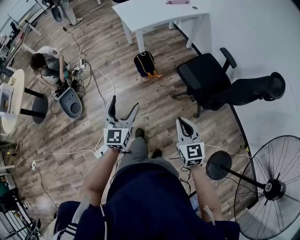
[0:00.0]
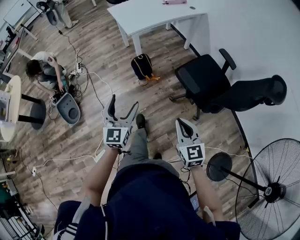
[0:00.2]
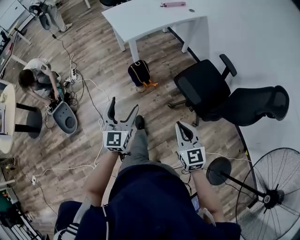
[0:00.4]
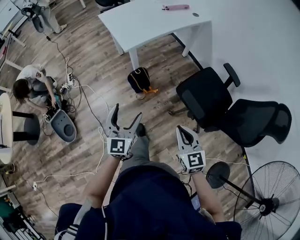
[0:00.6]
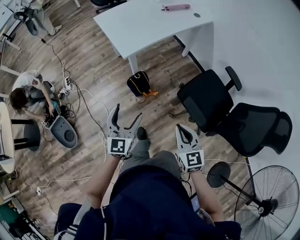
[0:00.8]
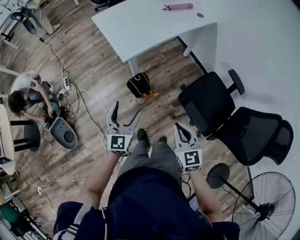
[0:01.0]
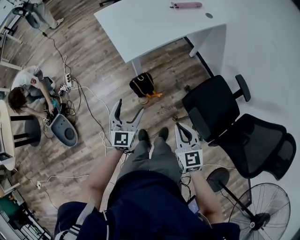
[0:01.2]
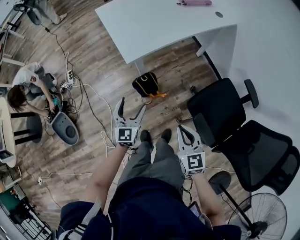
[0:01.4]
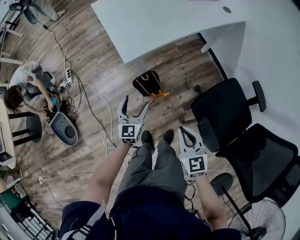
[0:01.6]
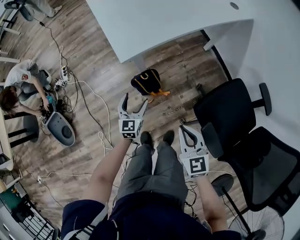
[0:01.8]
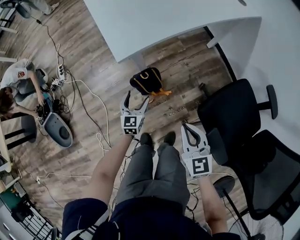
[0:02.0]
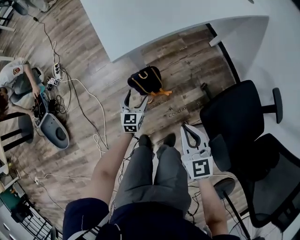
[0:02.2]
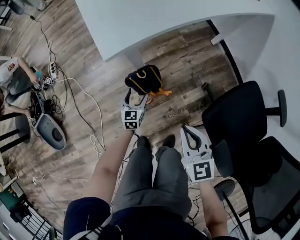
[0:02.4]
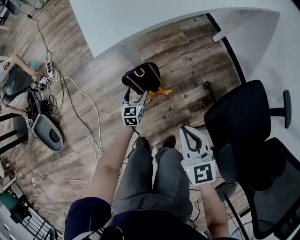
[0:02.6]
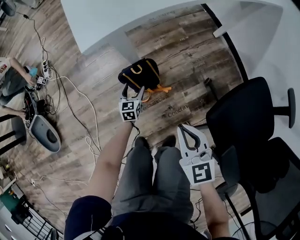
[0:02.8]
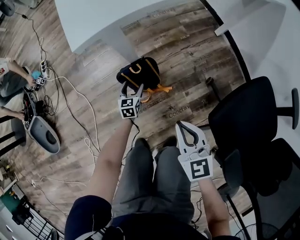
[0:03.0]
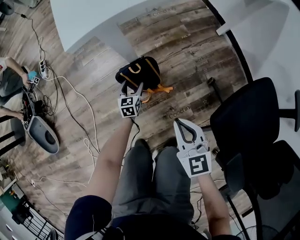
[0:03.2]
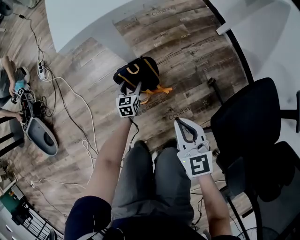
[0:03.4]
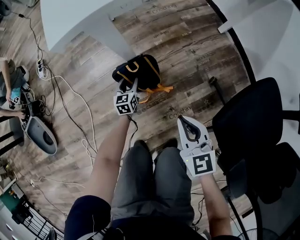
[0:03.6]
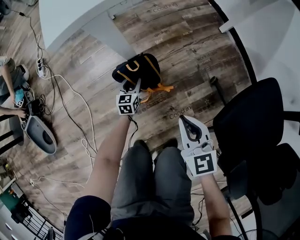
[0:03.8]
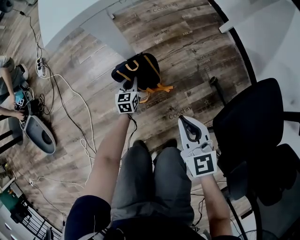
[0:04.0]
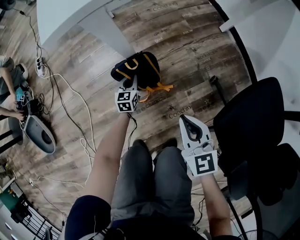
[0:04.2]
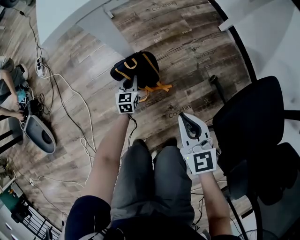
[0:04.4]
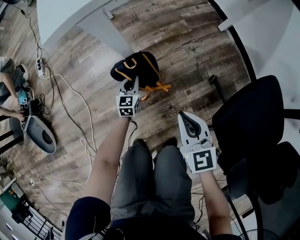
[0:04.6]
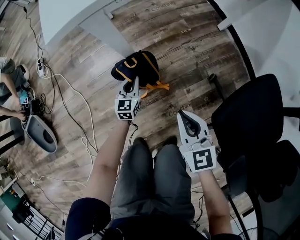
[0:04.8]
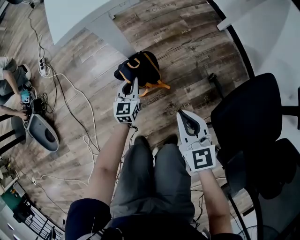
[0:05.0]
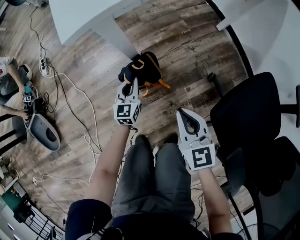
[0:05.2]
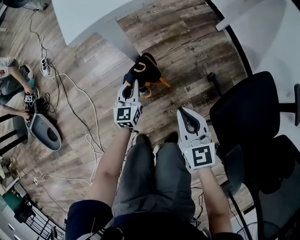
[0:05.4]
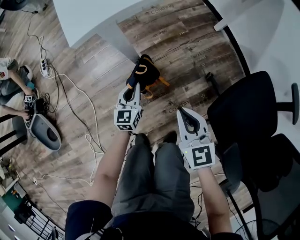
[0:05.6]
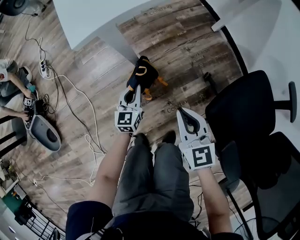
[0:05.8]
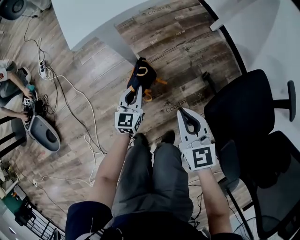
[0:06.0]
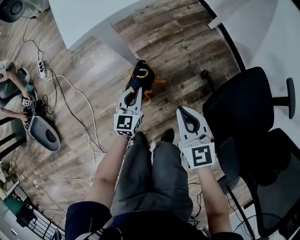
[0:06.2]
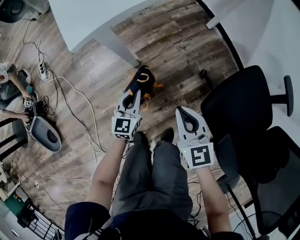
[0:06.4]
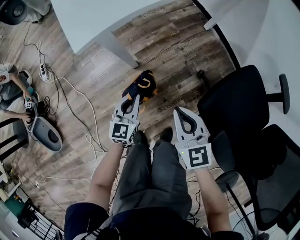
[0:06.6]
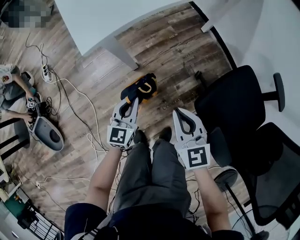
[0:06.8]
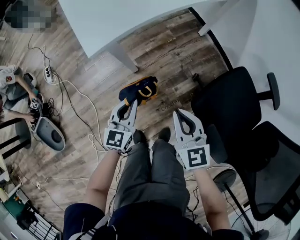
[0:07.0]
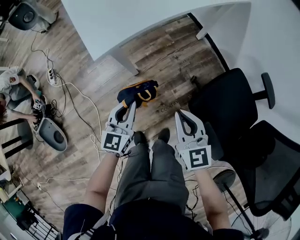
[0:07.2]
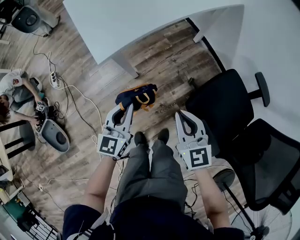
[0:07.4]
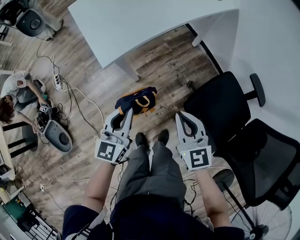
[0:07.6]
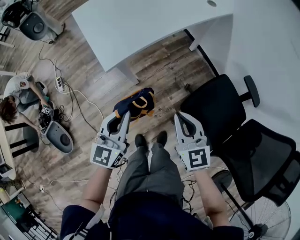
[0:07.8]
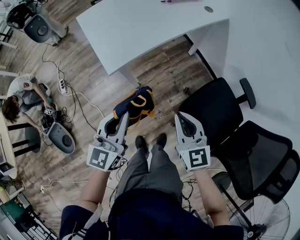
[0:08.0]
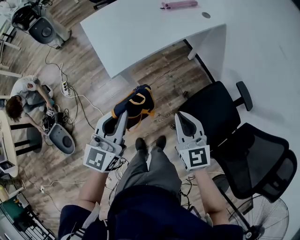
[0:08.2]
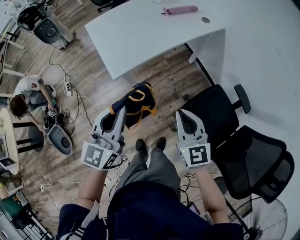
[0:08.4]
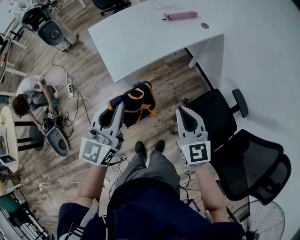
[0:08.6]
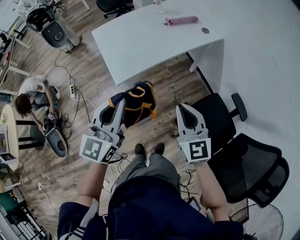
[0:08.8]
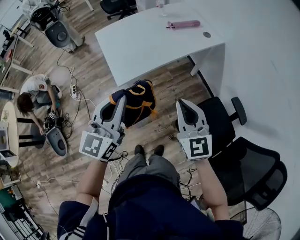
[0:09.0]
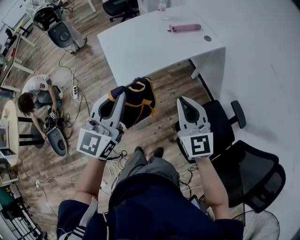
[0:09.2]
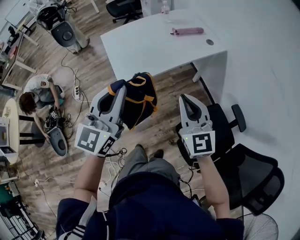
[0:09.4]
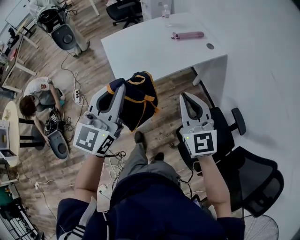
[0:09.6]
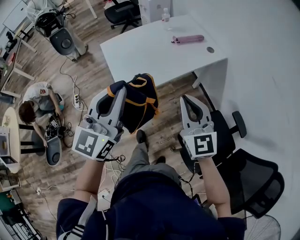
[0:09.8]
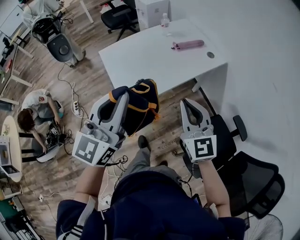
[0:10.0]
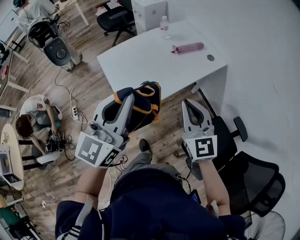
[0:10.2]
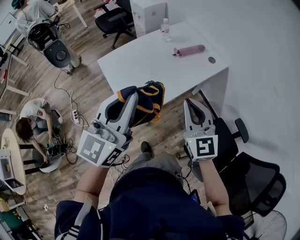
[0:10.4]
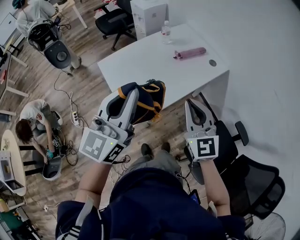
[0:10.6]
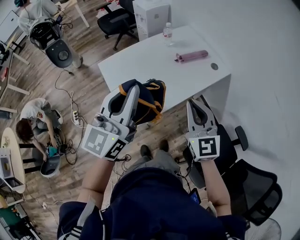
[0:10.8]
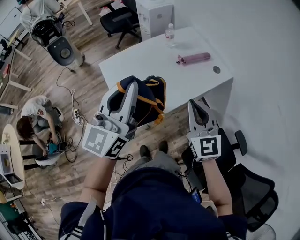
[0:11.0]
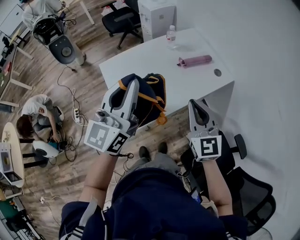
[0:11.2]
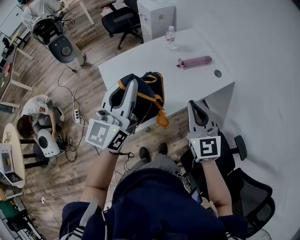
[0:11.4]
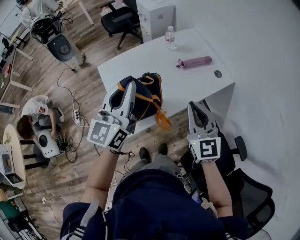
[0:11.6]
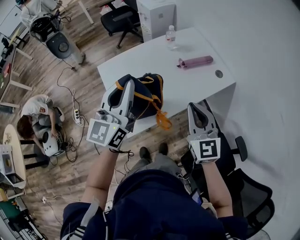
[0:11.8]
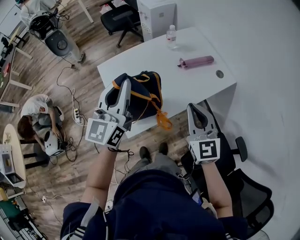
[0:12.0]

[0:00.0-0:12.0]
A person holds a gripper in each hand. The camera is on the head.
0:00.0 to 0:01.6: The two grippers travel together, forward, about 50 cm. The left gripper travels downward by approximately 30 cm.
0:01.6 to 0:03.0: The left gripper travels downward by roughly 50 cm, and turns by some 20 degrees, while the right gripper heads downward, covering some 25 cm.
0:03.0 to 0:04.4: The right gripper heads downward, covering about 5 cm. The left gripper closes its fingers.
0:04.4 to 0:06.0: The right gripper goes some 10 cm upward; the left gripper goes some 20 cm upward.
0:06.0 to 0:07.6: The left gripper goes roughly 40 cm upward, while the right gripper shifts roughly 25 cm upward.
0:07.6 to 0:09.0: The grippers both shift upward by some 25 cm.
0:09.0 to 0:10.4: The left gripper travels forward and upward by roughly 20 cm. The right gripper goes some 20 cm forward and to the left.
0:10.4 to 0:12.0: Both grippers move forward, about 15 cm.

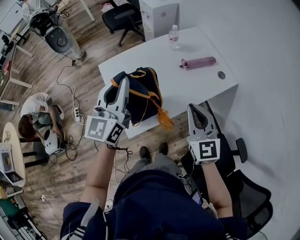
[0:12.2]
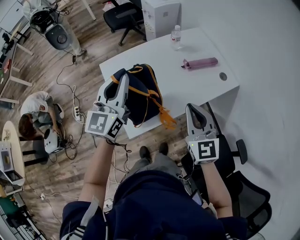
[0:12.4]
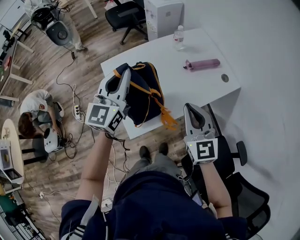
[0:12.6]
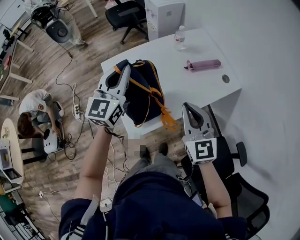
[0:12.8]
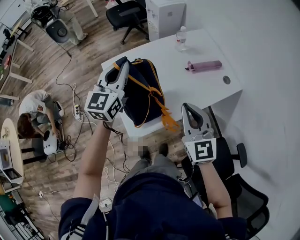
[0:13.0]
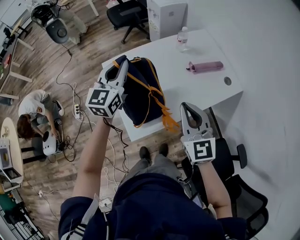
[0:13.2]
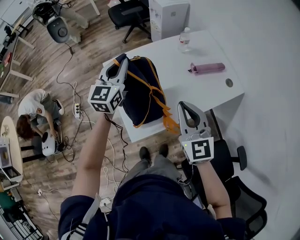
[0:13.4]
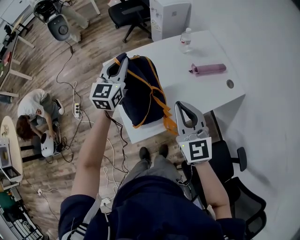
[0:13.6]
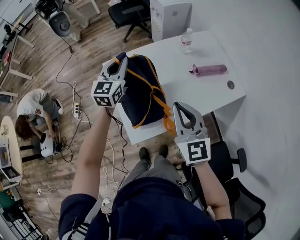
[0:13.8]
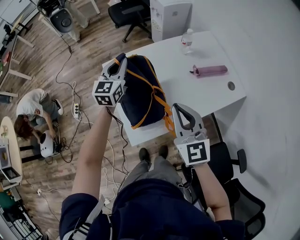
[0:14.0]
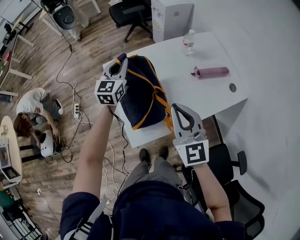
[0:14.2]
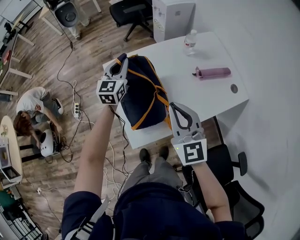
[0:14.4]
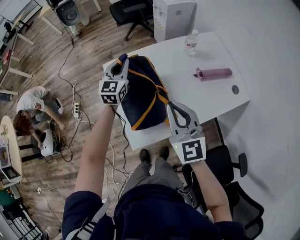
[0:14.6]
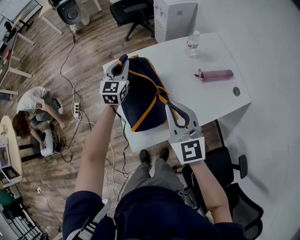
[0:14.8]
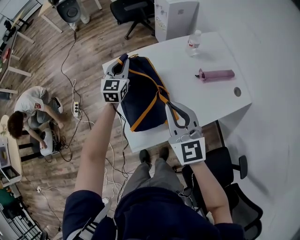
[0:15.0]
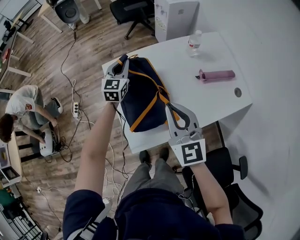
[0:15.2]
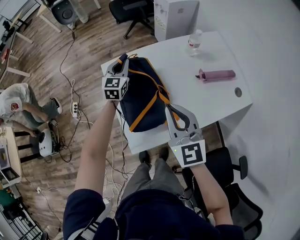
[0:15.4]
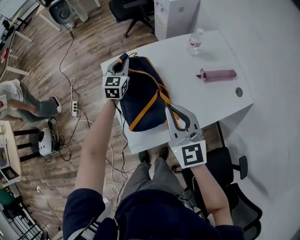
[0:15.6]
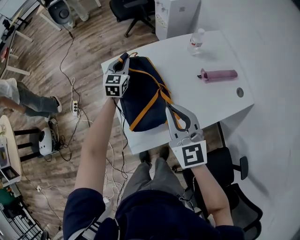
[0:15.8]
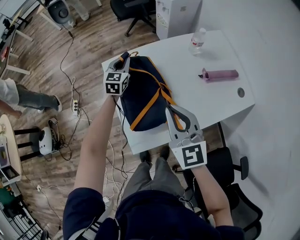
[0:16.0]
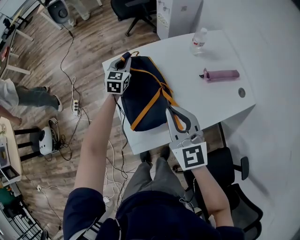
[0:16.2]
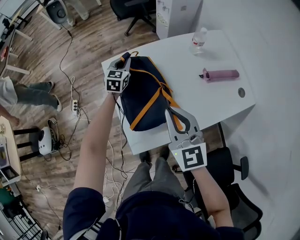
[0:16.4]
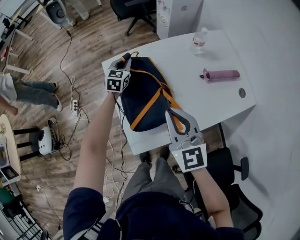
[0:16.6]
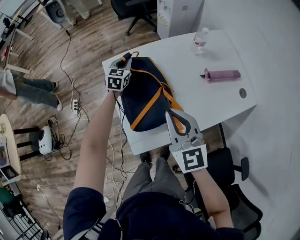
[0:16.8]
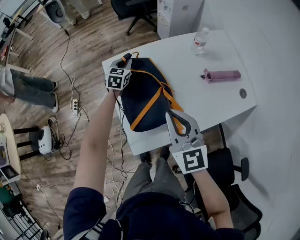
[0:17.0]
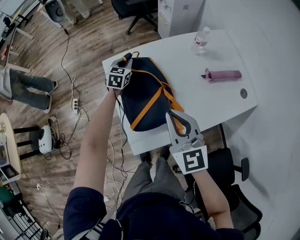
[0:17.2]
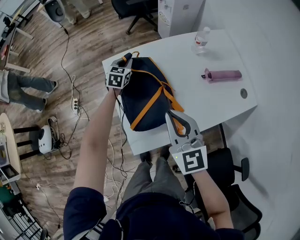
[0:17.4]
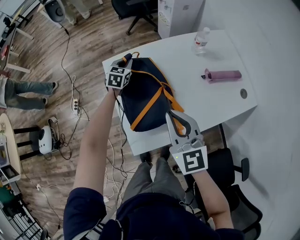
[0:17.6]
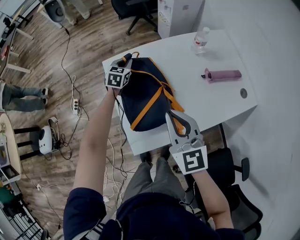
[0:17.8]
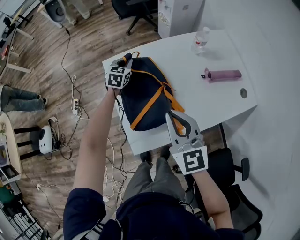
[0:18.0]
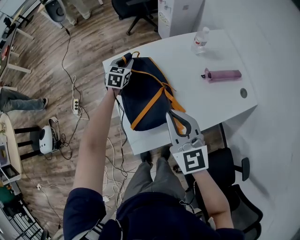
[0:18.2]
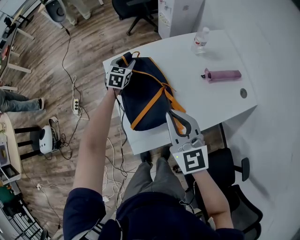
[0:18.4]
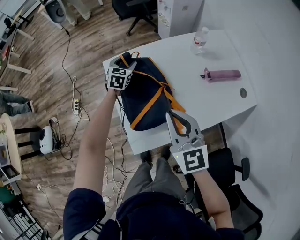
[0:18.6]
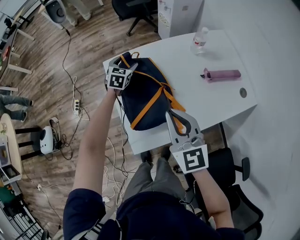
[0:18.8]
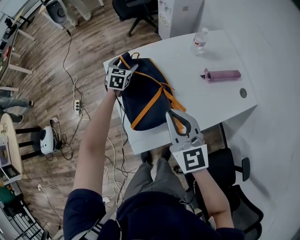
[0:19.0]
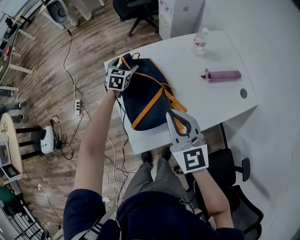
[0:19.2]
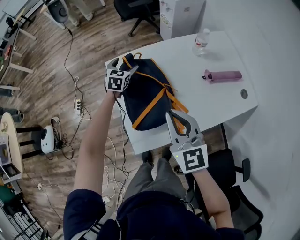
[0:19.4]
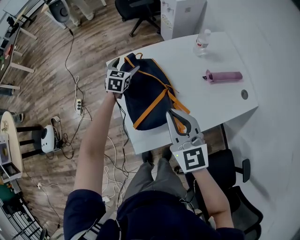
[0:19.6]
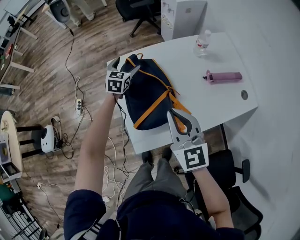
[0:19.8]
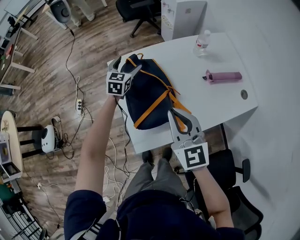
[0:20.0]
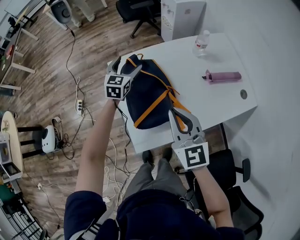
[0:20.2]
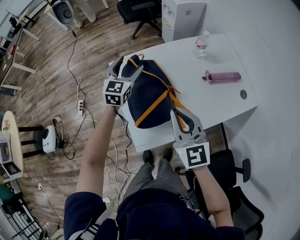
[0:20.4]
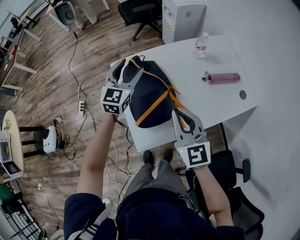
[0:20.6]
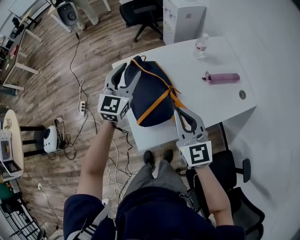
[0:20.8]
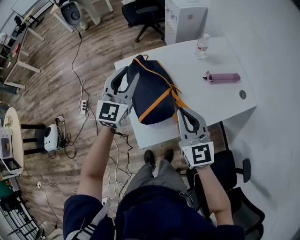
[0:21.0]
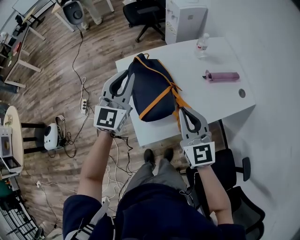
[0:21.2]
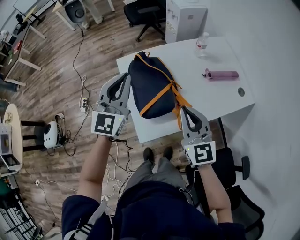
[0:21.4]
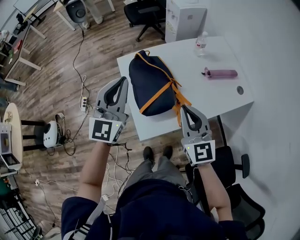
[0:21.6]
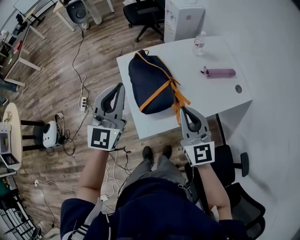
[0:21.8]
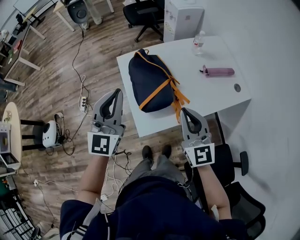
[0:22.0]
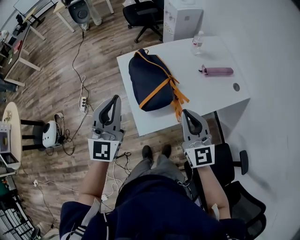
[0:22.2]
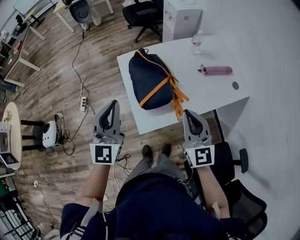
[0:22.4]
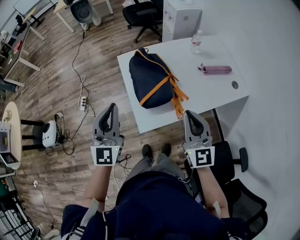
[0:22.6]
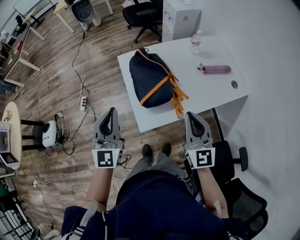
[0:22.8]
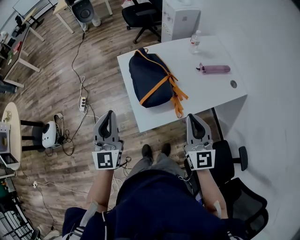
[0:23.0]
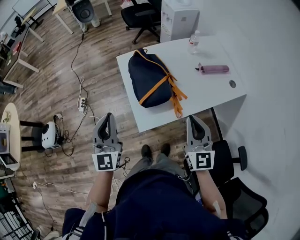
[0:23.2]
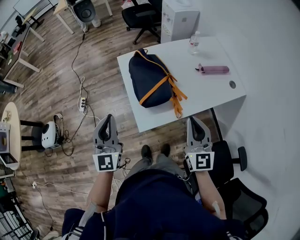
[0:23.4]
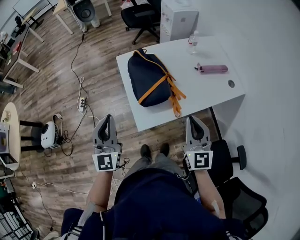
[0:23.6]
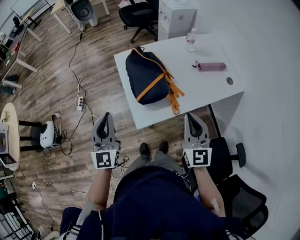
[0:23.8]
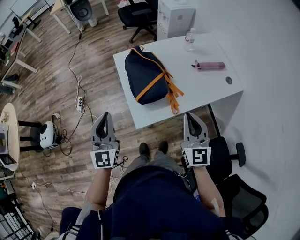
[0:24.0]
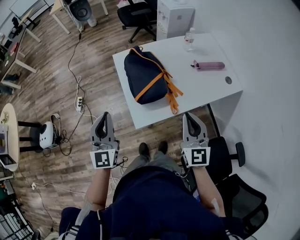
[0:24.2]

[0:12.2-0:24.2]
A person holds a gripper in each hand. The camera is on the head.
0:12.2 to 0:13.8: The left gripper heads forward, downward and to the left, covering approximately 20 cm. Meanwhile the right gripper travels to the left and forward by approximately 10 cm.
0:13.8 to 0:15.2: The right gripper moves forward, some 5 cm. Meanwhile the left gripper goes about 15 cm downward and forward.
0:15.2 to 0:16.6: The left gripper heads downward, covering roughly 10 cm.
0:16.6 to 0:18.2: The grippers move only a little.
0:18.2 to 0:19.8: The left gripper opens.
0:19.8 to 0:21.2: The left gripper goes some 30 cm upward and backward, tips its fingers upward by some 30 degrees, and closes. The right gripper heads backward, covering about 5 cm.
0:21.2 to 0:22.6: The left gripper goes about 20 cm backward; the right gripper moves backward, about 10 cm.
0:22.6 to 0:24.2: The left gripper changes place by some 5 cm.
